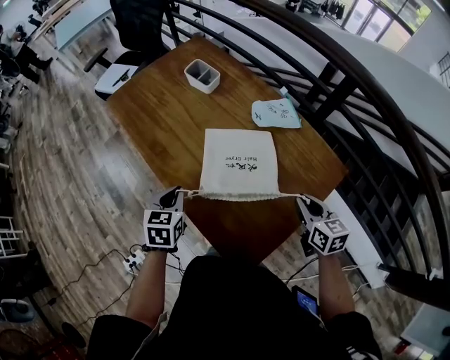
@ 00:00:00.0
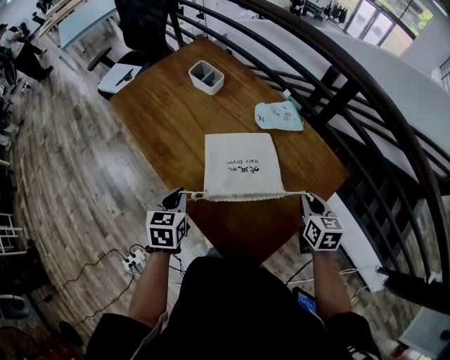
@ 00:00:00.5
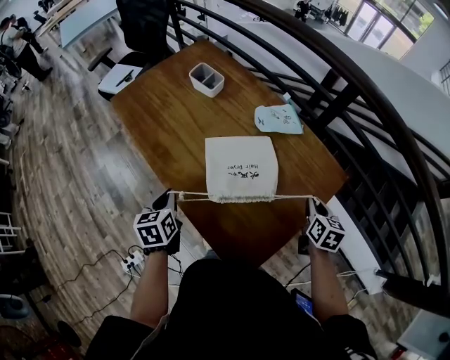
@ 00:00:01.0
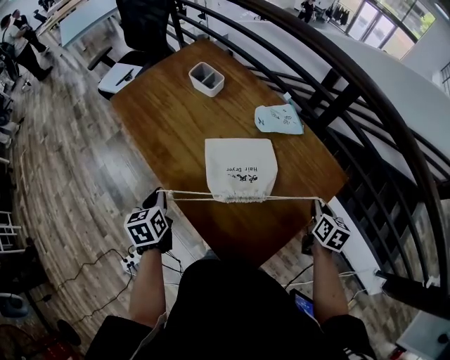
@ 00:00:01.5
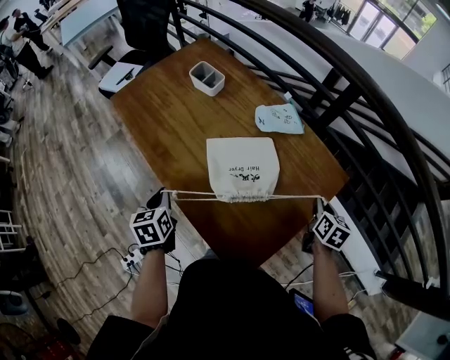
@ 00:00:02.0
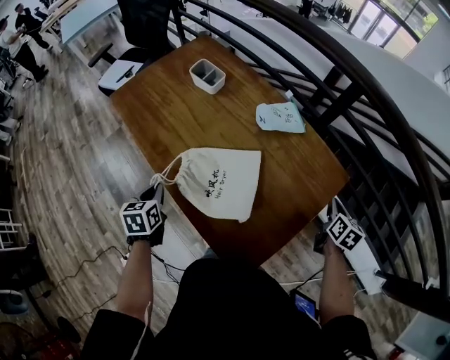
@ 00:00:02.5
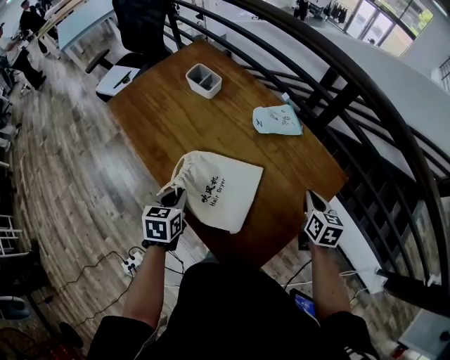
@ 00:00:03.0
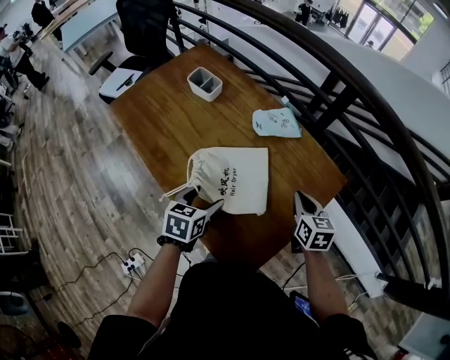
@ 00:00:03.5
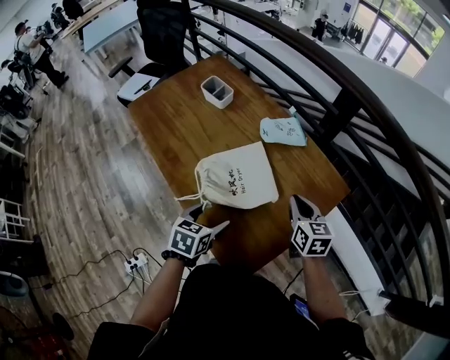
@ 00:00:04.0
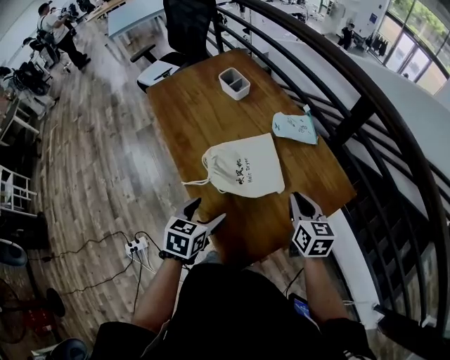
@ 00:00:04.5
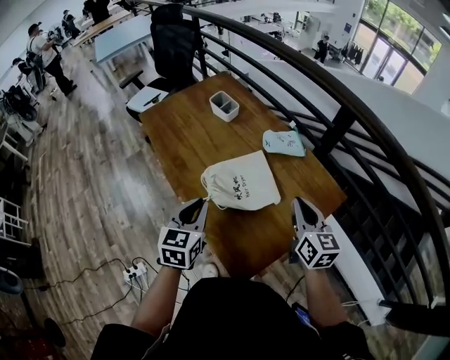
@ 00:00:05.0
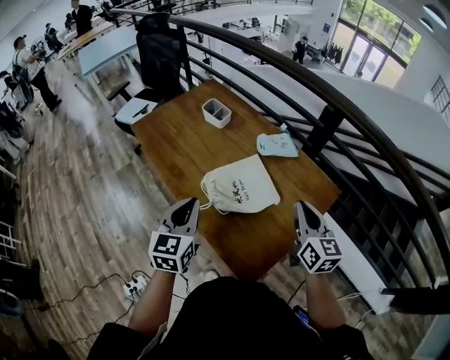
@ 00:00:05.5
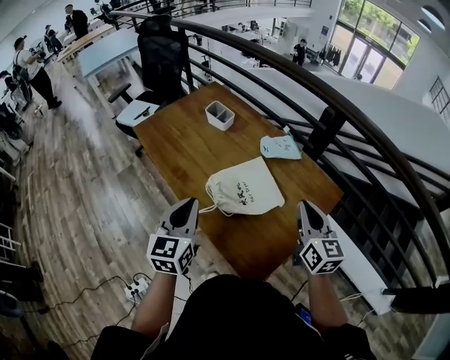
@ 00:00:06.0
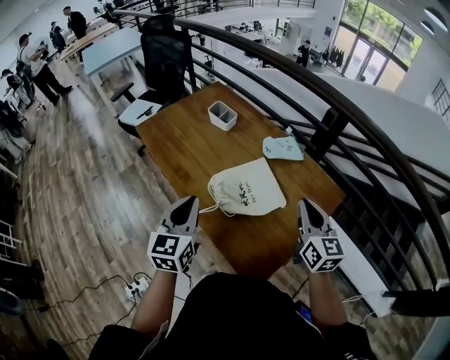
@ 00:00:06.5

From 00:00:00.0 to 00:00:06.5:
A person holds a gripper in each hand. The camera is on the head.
From 00:00:00.0 to 00:00:02.0: The left gripper is displaced to the left by some 5 cm. Meanwhile the right gripper moves to the right, some 10 cm, and rotates some 30 degrees.
From 00:00:02.0 to 00:00:04.5: The left gripper travels to the right by approximately 15 cm, and opens its fingers. The right gripper heads to the left and upward, covering roughly 15 cm, and rotates some 30 degrees.
From 00:00:04.5 to 00:00:06.5: The right gripper heads upward, covering approximately 15 cm, and turns by about 20 degrees. The left gripper shifts approximately 20 cm upward and to the left, changes its angle by roughly 30 degrees, and closes its fingers.

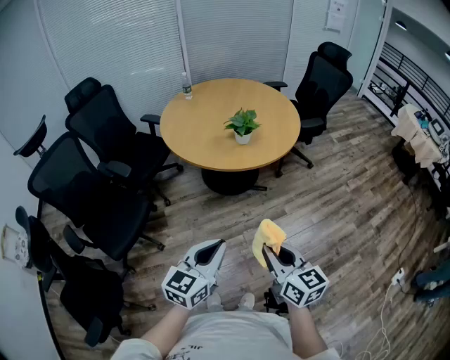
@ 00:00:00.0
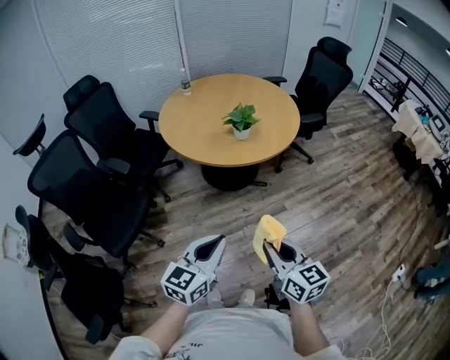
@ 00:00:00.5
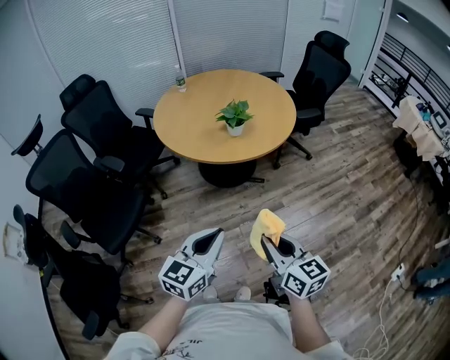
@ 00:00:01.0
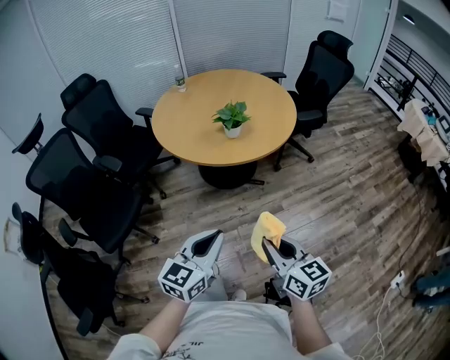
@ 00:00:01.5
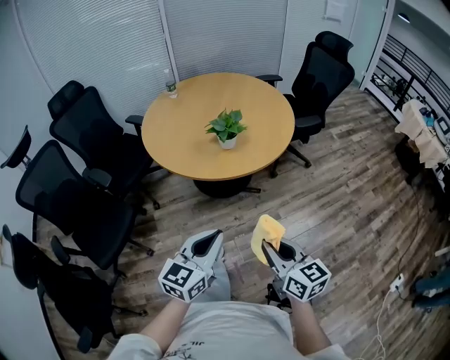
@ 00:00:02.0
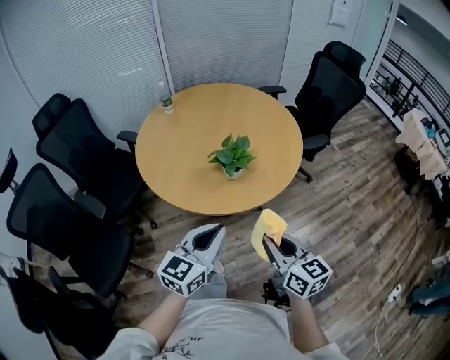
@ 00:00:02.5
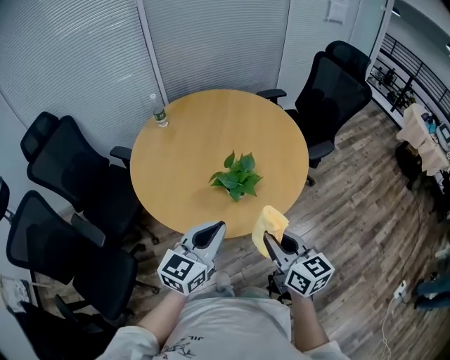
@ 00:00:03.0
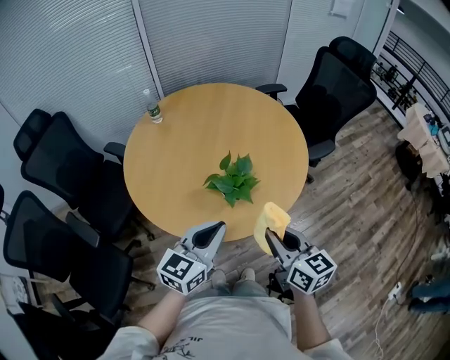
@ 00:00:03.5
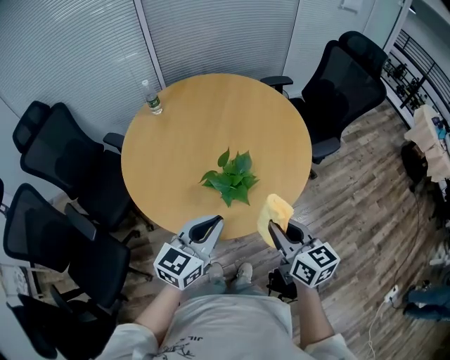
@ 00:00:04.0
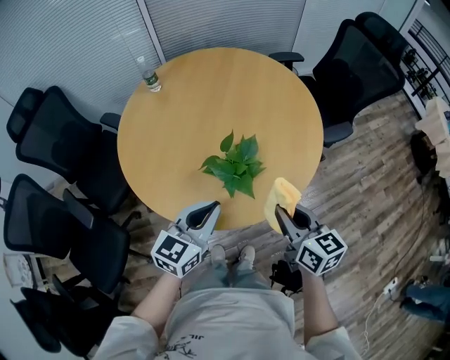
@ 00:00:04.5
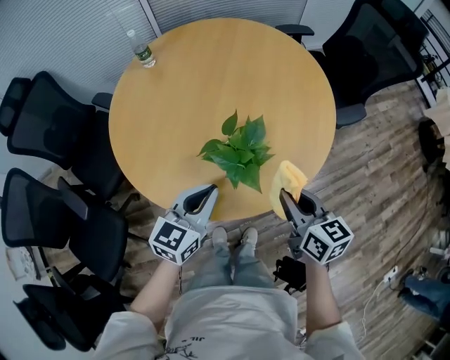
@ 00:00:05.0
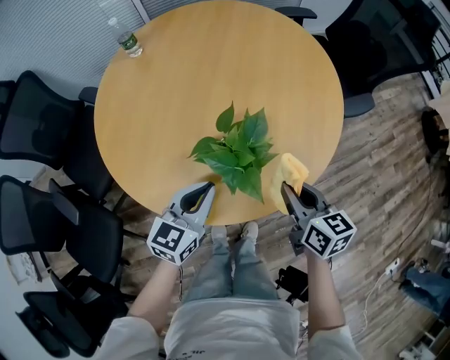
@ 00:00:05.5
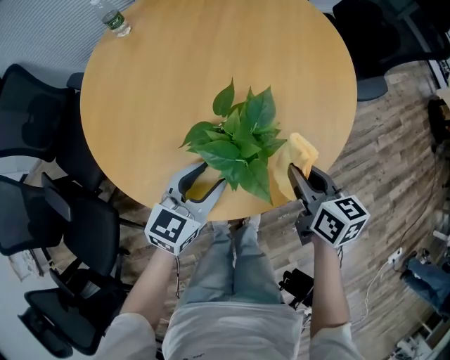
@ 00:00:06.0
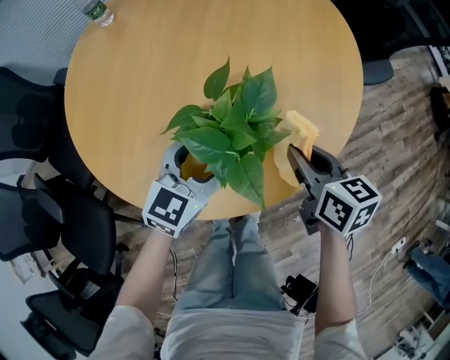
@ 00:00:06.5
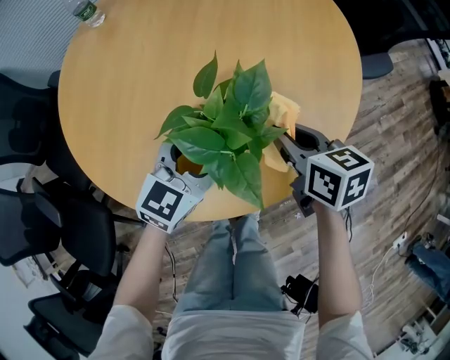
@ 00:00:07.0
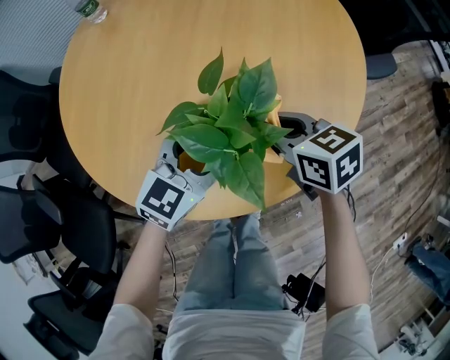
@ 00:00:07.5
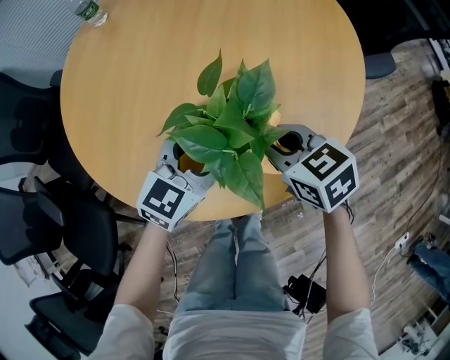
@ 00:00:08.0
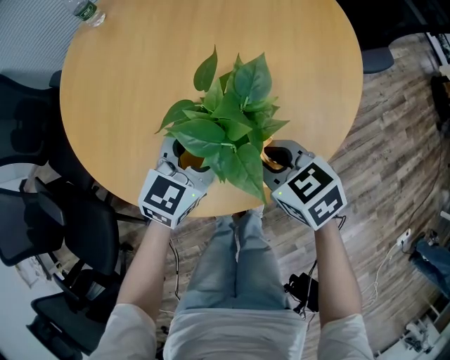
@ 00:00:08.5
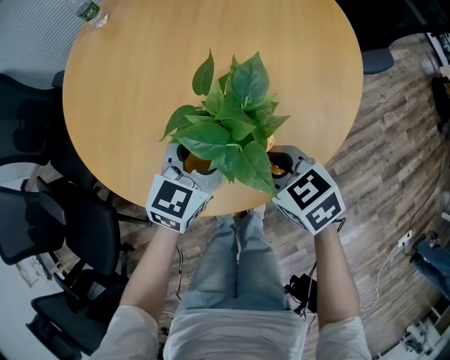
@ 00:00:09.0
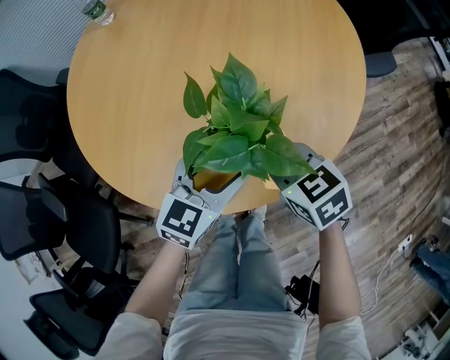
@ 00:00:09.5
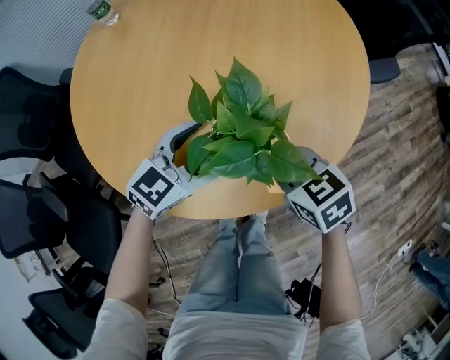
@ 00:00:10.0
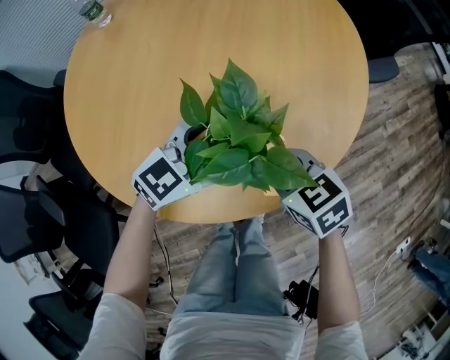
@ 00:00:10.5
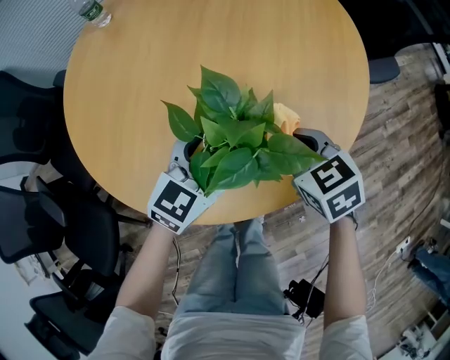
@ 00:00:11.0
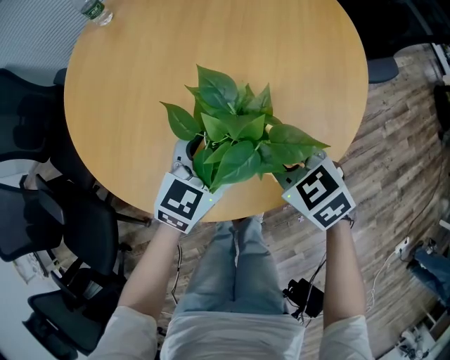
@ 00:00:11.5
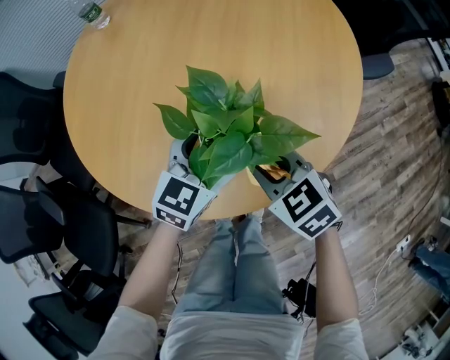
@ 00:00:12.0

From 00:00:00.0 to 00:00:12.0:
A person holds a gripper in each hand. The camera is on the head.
From 00:00:00.0 to 00:00:02.0: Both grippers travel together forward and to the right, about 15 cm.
From 00:00:02.0 to 00:00:04.0: Both grippers move forward, some 35 cm.
From 00:00:04.0 to 00:00:06.0: The two grippers go some 25 cm downward and forward. The left gripper opens up.
From 00:00:06.0 to 00:00:08.0: The left gripper moves approximately 5 cm, and opens up; the right gripper goes about 5 cm to the left, and swivels about 30 degrees.
From 00:00:08.0 to 00:00:10.0: The grippers make only small movements.
From 00:00:10.0 to 00:00:12.0: The grippers move only a little.

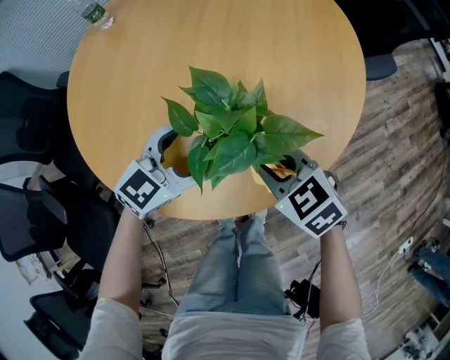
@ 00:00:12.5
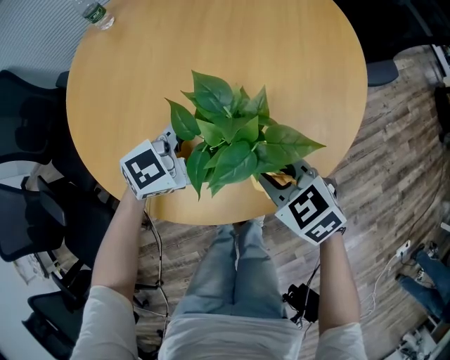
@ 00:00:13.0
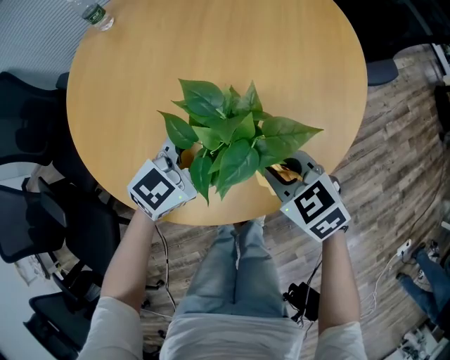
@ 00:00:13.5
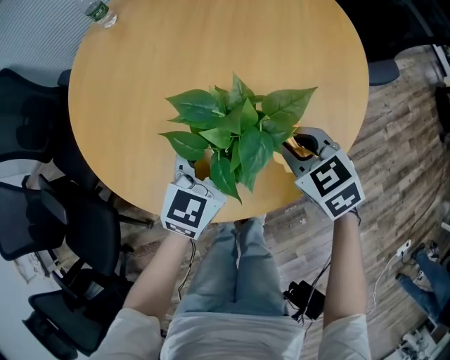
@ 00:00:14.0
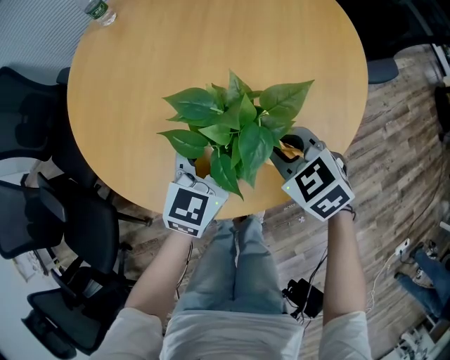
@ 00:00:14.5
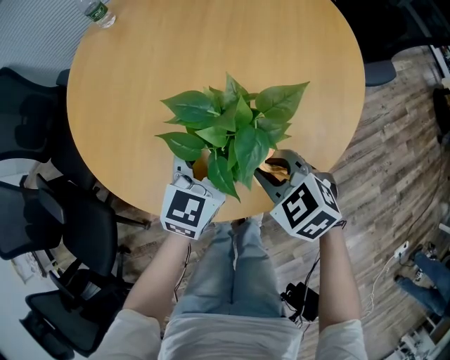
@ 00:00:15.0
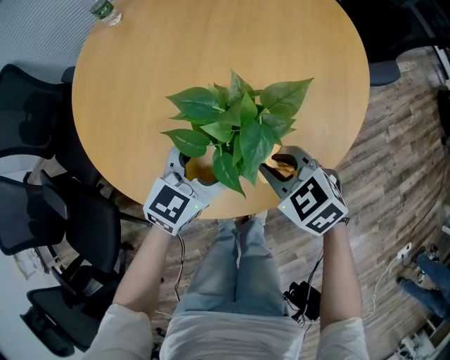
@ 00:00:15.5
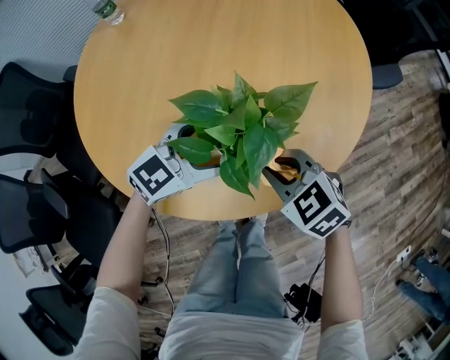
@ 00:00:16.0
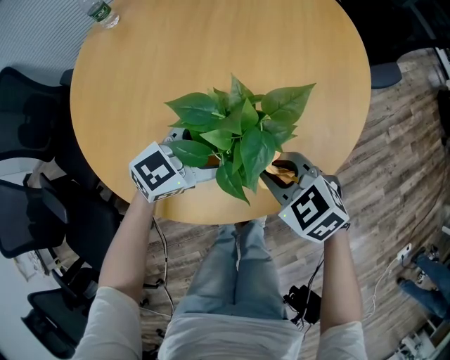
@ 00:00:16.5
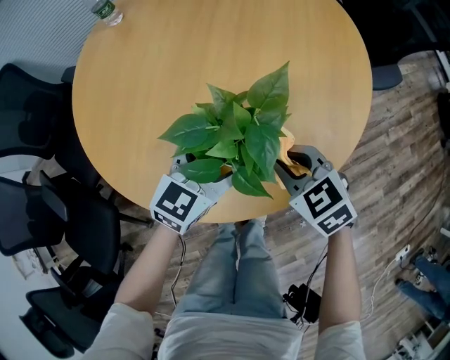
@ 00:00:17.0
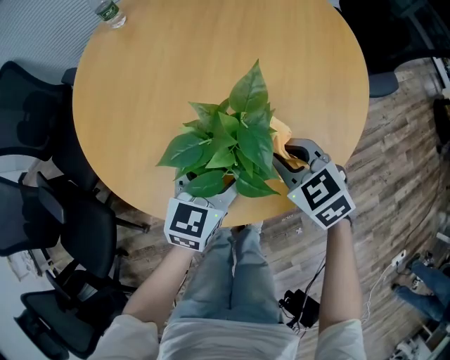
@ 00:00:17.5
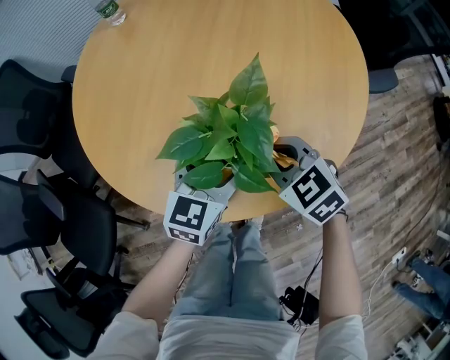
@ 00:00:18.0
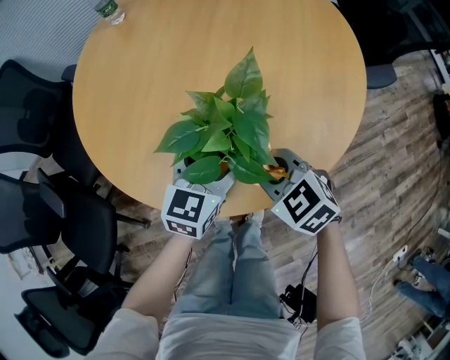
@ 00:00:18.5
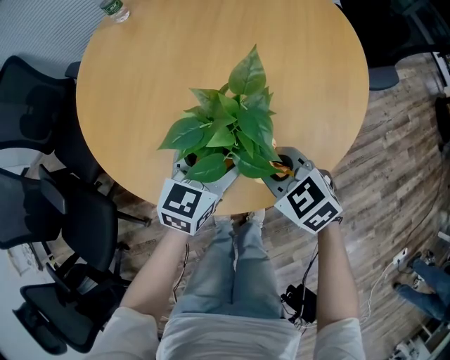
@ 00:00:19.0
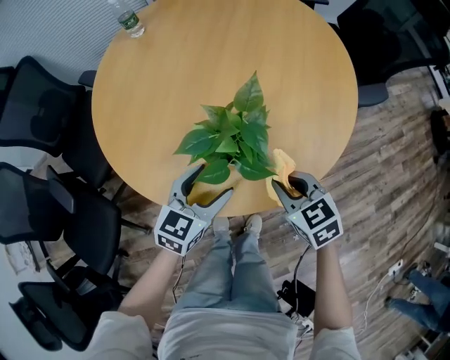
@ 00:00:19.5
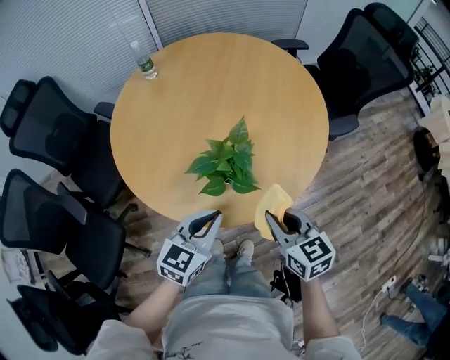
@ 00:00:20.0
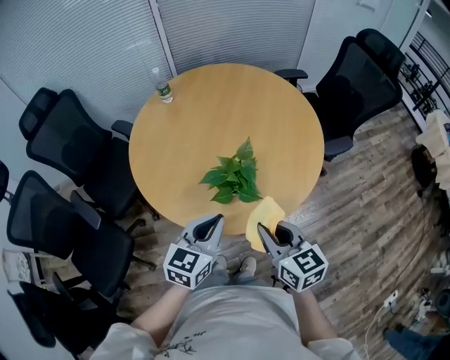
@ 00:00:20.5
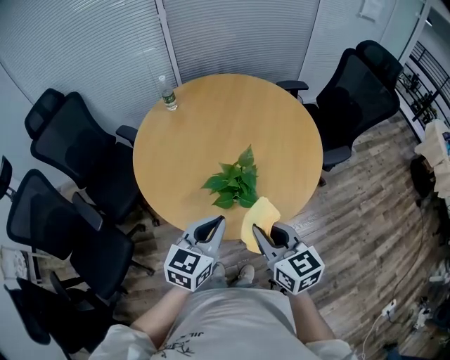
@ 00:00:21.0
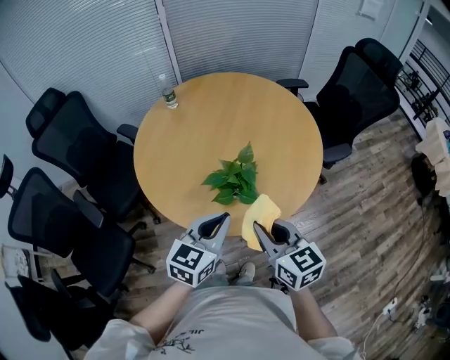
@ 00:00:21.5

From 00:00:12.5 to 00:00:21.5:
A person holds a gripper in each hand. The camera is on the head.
From 00:00:12.5 to 00:00:14.5: The left gripper changes its angle by roughly 20 degrees.
From 00:00:17.0 to 00:00:19.5: The right gripper shifts by some 5 cm; the left gripper travels backward and to the left by roughly 10 cm.
From 00:00:19.5 to 00:00:21.5: Both grippers move upward, roughly 25 cm. The right gripper rotates about 30 degrees; the left gripper closes.
